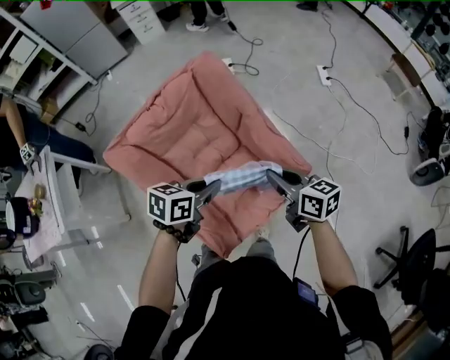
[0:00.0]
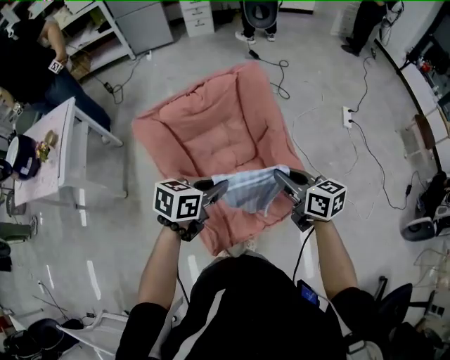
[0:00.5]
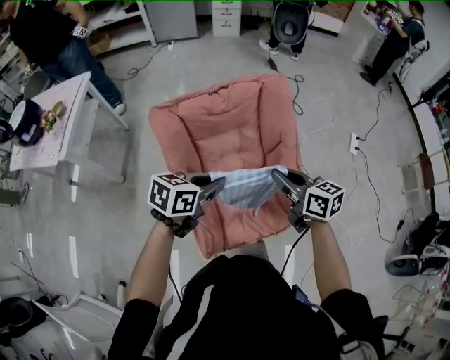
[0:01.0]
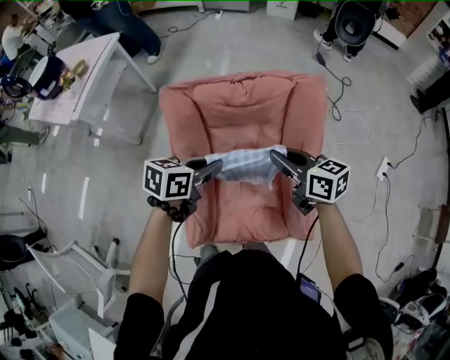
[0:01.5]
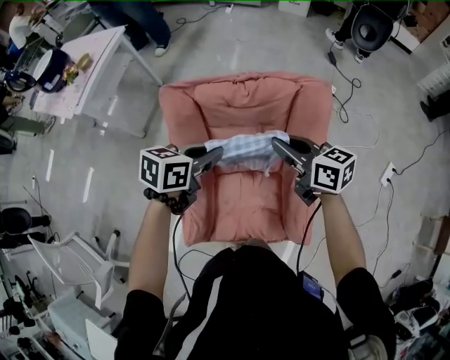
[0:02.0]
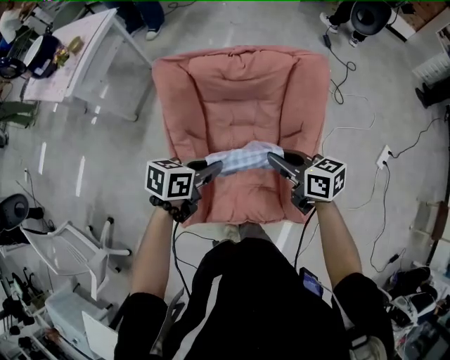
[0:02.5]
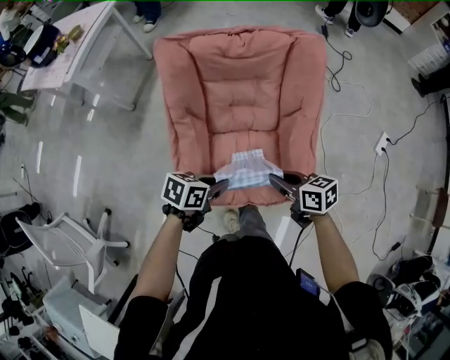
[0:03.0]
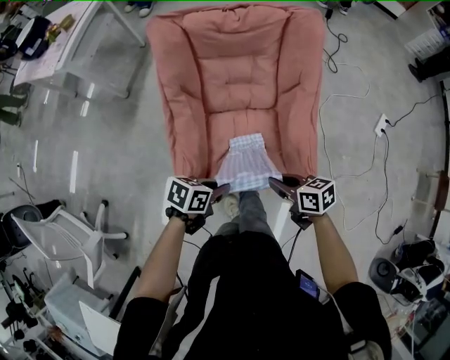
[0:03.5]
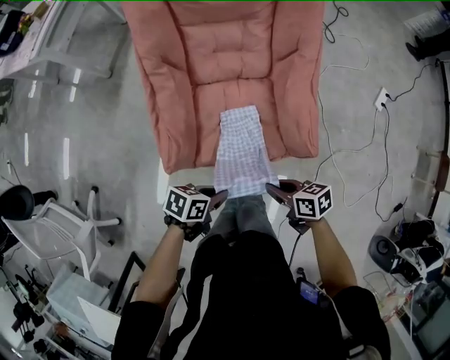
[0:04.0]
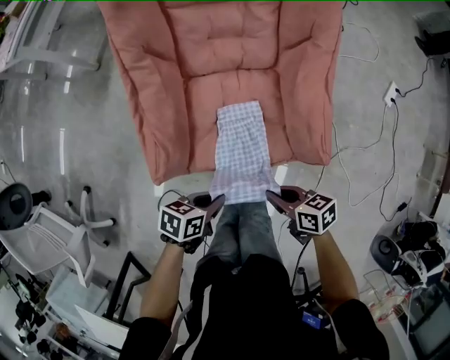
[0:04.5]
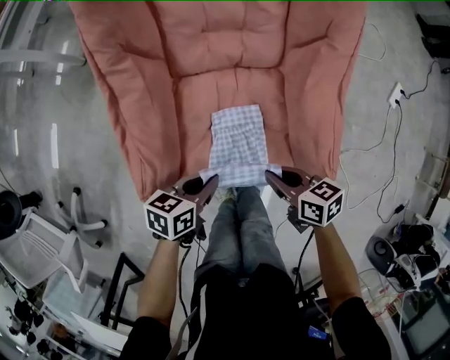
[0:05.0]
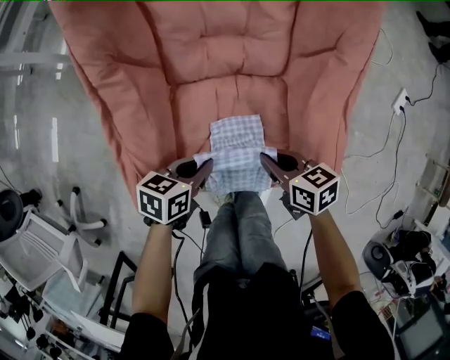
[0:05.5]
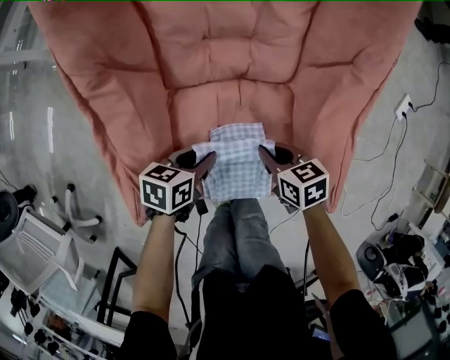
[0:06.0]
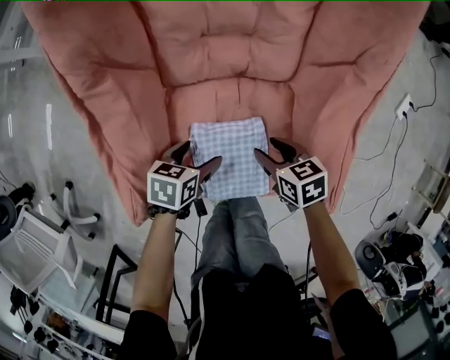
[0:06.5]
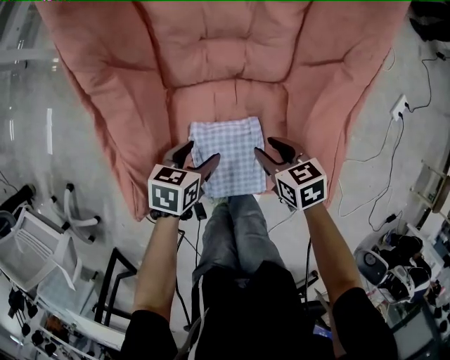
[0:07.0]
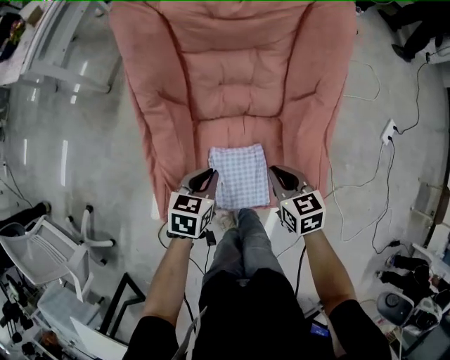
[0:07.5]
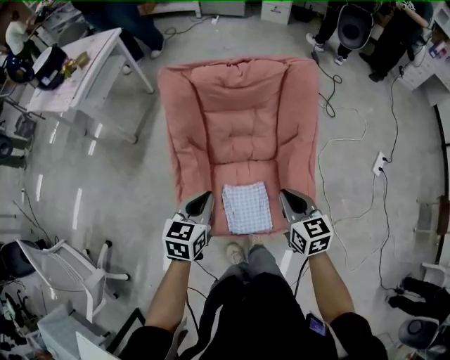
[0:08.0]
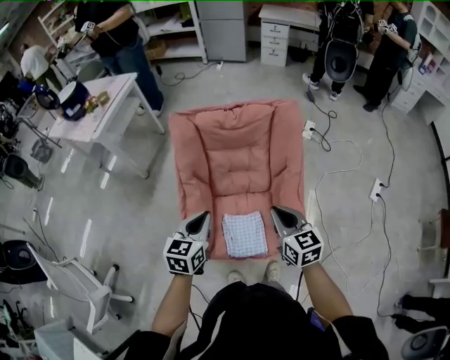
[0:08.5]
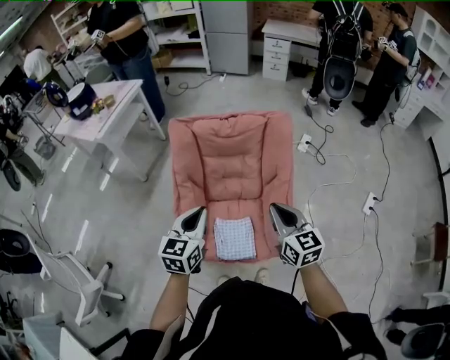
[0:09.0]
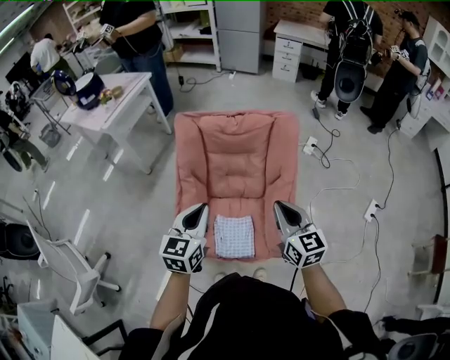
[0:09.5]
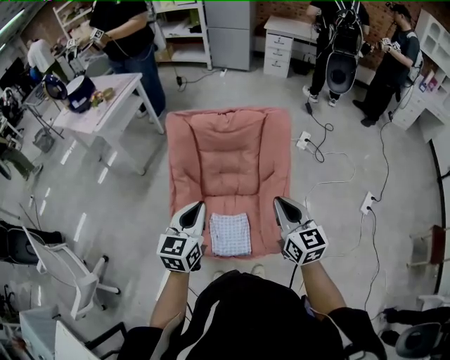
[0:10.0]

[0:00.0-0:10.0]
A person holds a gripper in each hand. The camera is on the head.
0:00.0 to 0:02.0: The right gripper shifts by some 30 cm, and turns by some 50 degrees, while the left gripper changes place by some 20 cm, and rotates some 40 degrees.
0:02.0 to 0:04.0: The two grippers travel together, roughly 40 cm. The right gripper swivels about 40 degrees. The left gripper swivels some 30 degrees.
0:04.0 to 0:06.0: The left gripper shifts by about 30 cm; the right gripper shifts by roughly 30 cm.
0:06.0 to 0:08.0: Both grippers travel together upward, approximately 35 cm. The left gripper rotates some 40 degrees, and opens, then closes again. Meanwhile the right gripper changes its angle by some 40 degrees, and opens, then closes again.
0:08.0 to 0:10.0: The left gripper heads upward, covering about 20 cm, and turns by some 20 degrees; the right gripper travels upward and to the right by roughly 20 cm, and changes its angle by approximately 20 degrees.

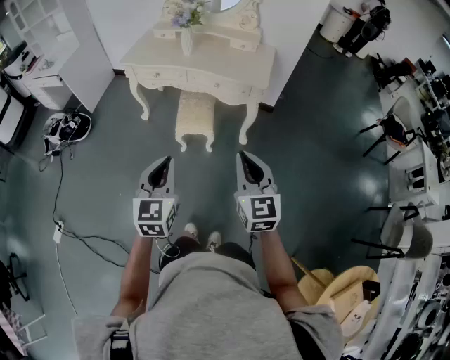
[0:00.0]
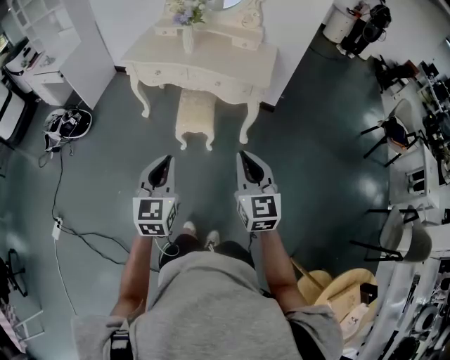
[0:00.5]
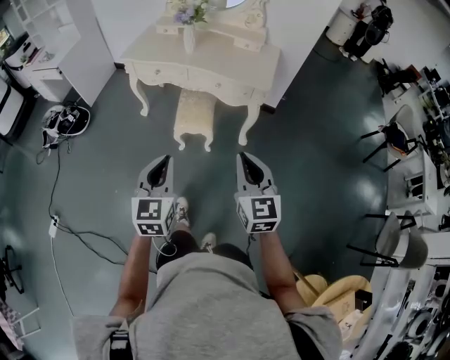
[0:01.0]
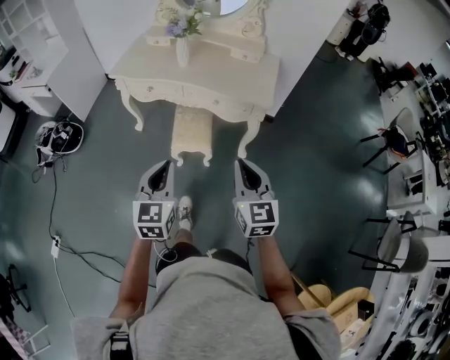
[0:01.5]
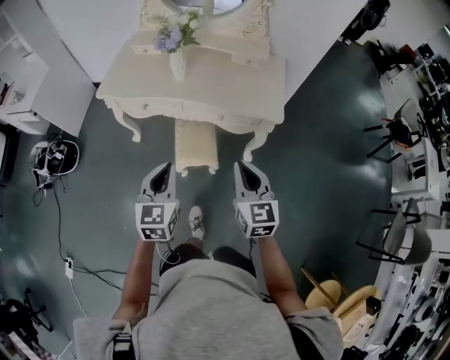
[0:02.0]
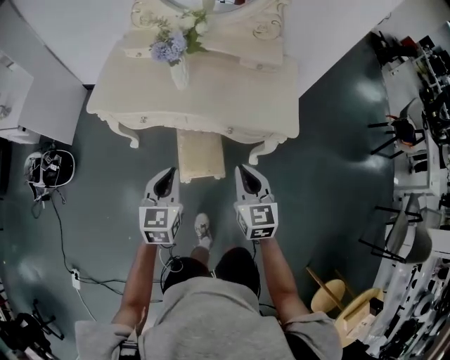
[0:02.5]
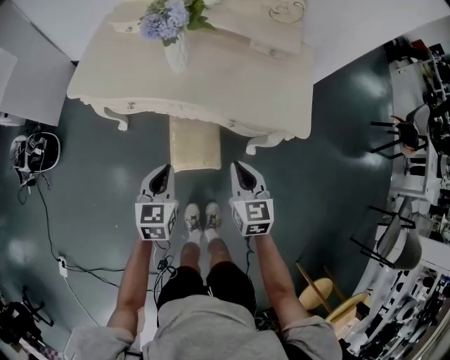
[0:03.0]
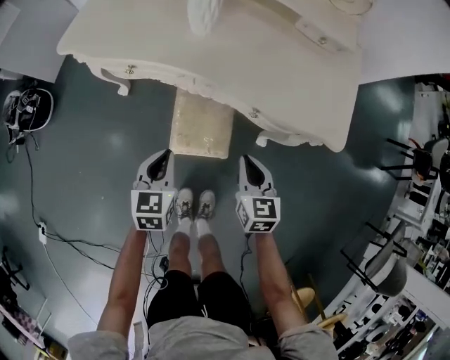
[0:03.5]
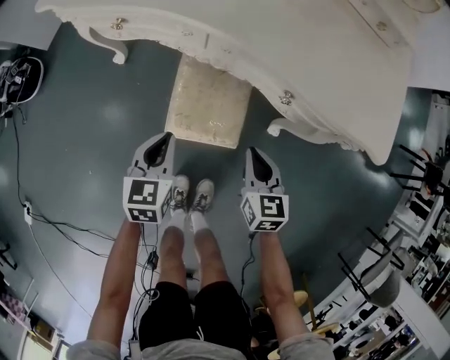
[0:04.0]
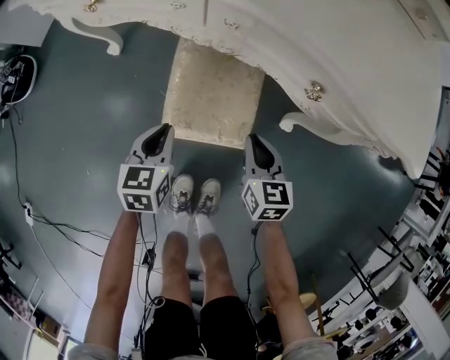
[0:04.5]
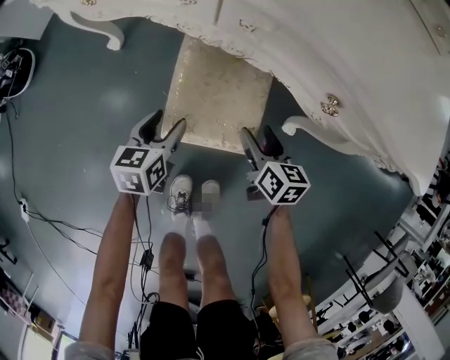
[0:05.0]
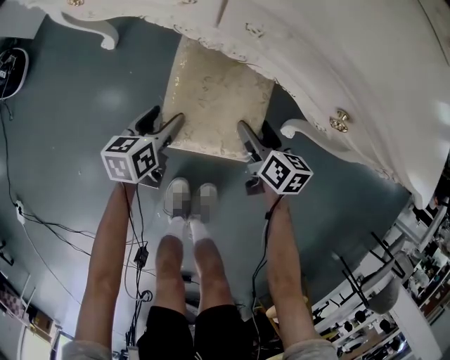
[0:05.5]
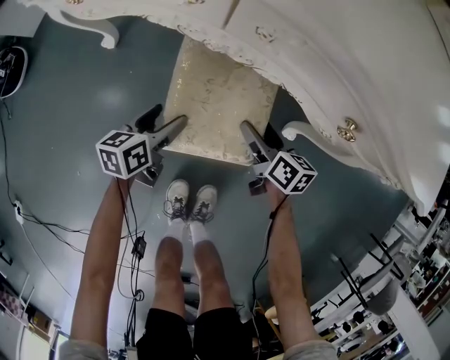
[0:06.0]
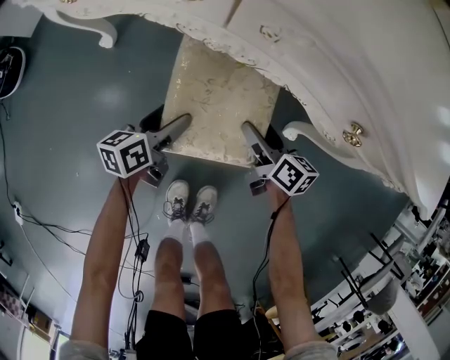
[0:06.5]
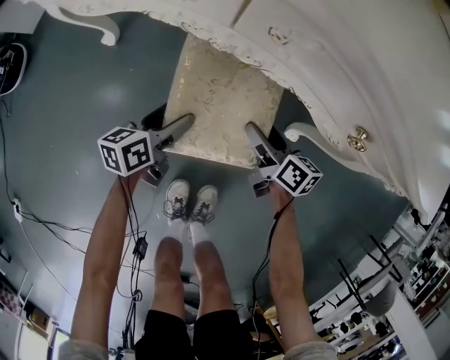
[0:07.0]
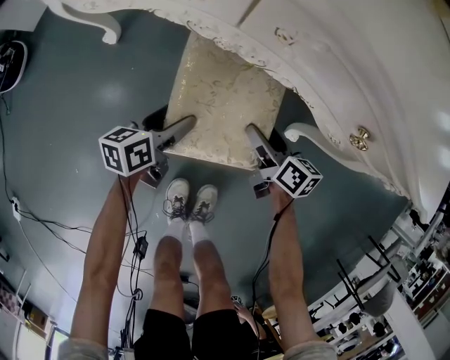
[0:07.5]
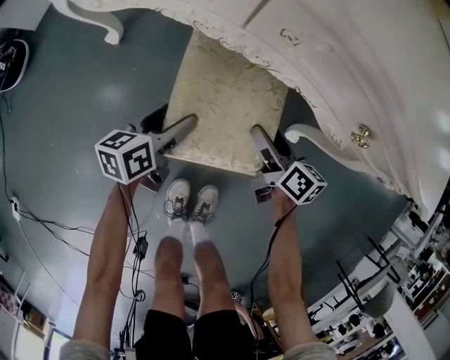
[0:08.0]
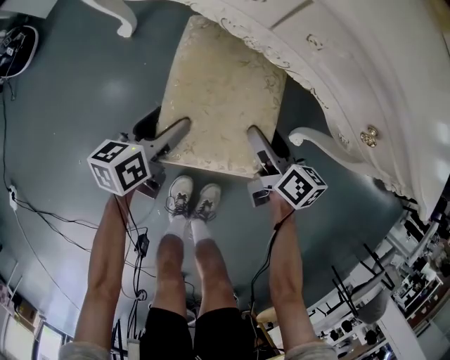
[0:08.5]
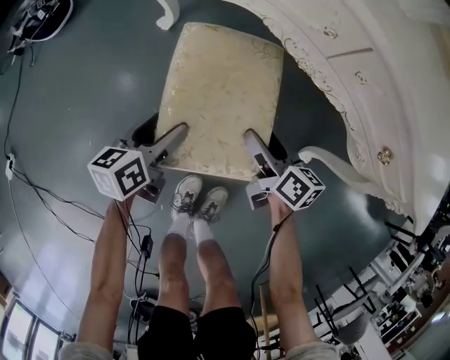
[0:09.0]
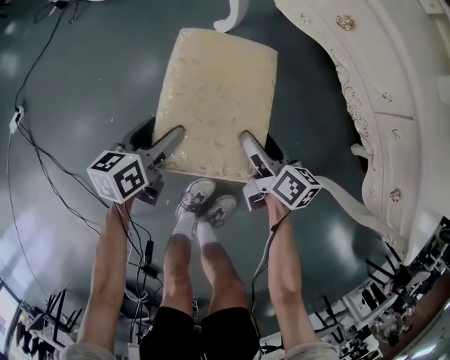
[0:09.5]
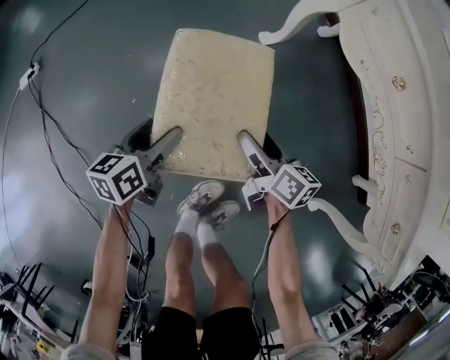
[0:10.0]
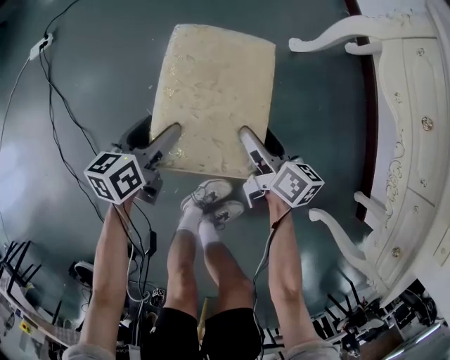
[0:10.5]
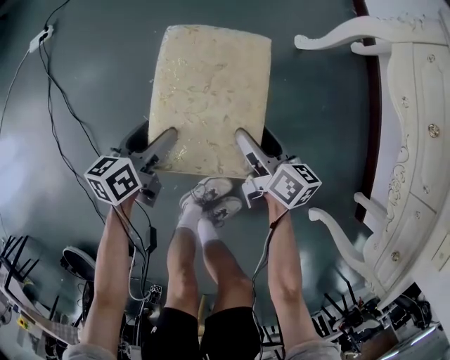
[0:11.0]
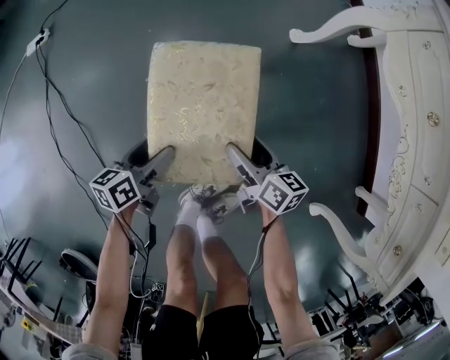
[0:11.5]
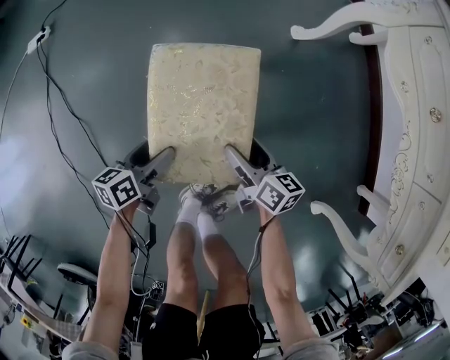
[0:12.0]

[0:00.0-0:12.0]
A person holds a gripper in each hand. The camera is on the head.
0:00.0 to 0:02.0: The grippers both shift forward by some 30 cm.
0:02.0 to 0:04.0: The grippers both shift downward and forward by approximately 50 cm. The left gripper rotates roughly 20 degrees. The right gripper changes its angle by some 20 degrees.
0:04.0 to 0:06.0: The right gripper moves downward and forward, approximately 20 cm, rotates roughly 30 degrees, and opens; the left gripper shifts approximately 20 cm downward, rotates roughly 30 degrees, and opens its fingers.
0:06.0 to 0:08.0: The grippers make only small movements.
0:08.0 to 0:10.0: Both grippers are carried about 40 cm. The left gripper rotates about 50 degrees; the right gripper turns by approximately 40 degrees.
0:10.0 to 0:12.0: The left gripper shifts roughly 15 cm backward, downward and to the left; the right gripper moves to the left, downward and backward, some 10 cm.

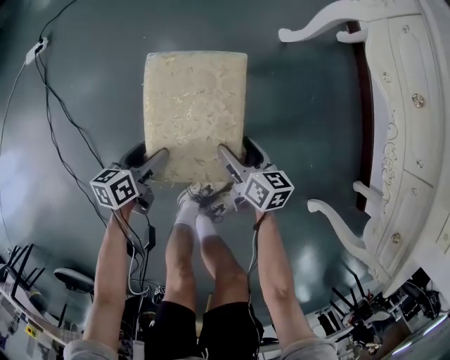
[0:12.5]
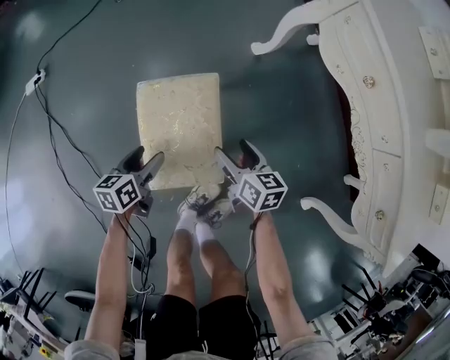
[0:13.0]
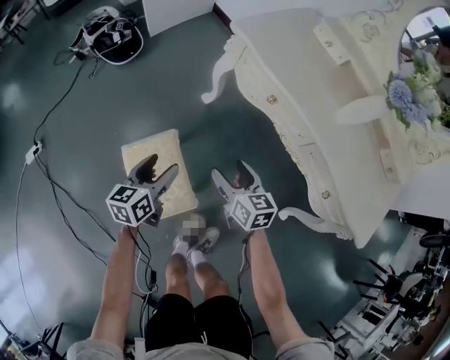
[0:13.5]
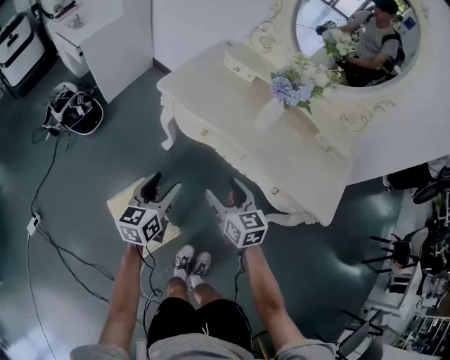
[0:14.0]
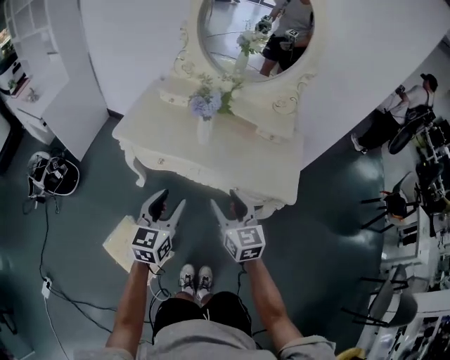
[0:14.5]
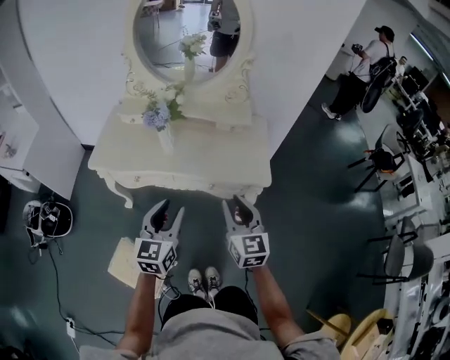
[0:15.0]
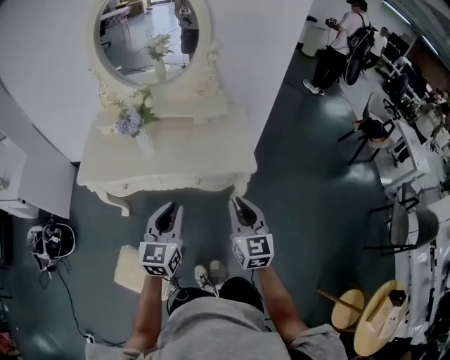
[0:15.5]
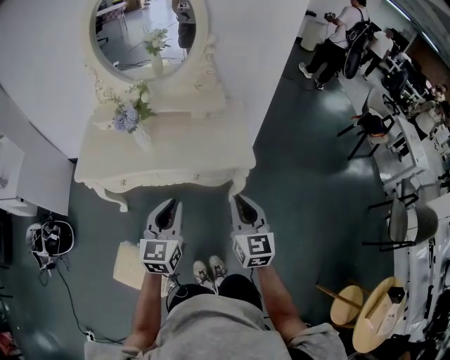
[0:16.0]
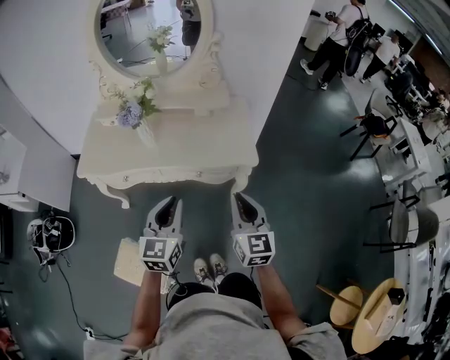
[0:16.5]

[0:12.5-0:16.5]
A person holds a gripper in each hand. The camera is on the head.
0:12.5 to 0:14.5: Both grippers move upward, roughly 60 cm. The left gripper twists about 60 degrees clockwise, seen from behind, and closes, while the right gripper rotates some 70 degrees.
0:14.5 to 0:16.5: The grippers both shift to the right by some 20 cm. The right gripper swivels roughly 30 degrees, and closes up, while the left gripper closes its fingers.
